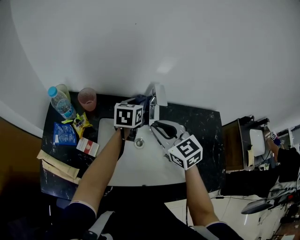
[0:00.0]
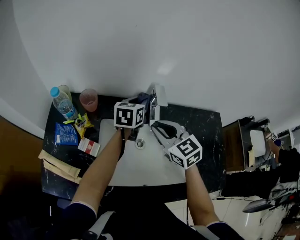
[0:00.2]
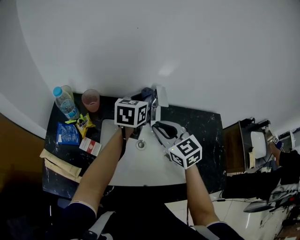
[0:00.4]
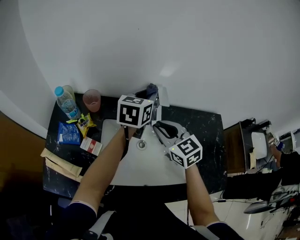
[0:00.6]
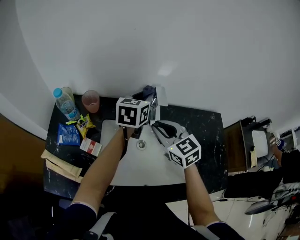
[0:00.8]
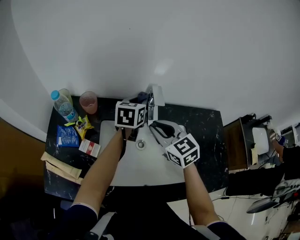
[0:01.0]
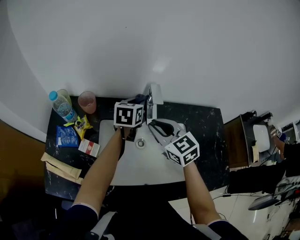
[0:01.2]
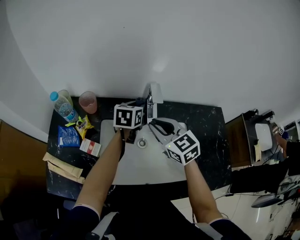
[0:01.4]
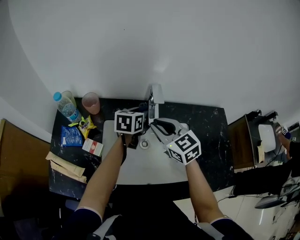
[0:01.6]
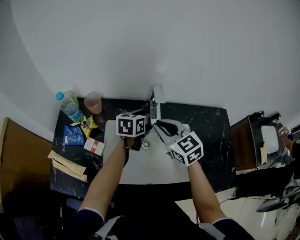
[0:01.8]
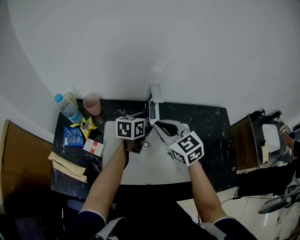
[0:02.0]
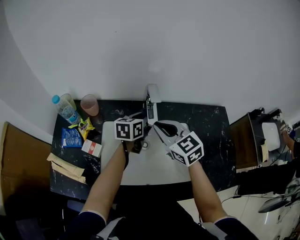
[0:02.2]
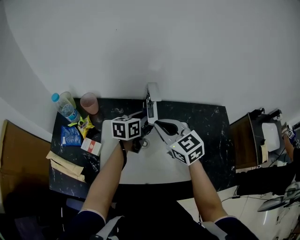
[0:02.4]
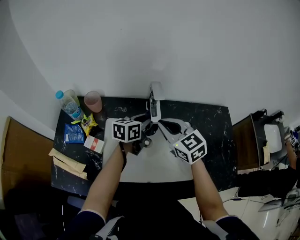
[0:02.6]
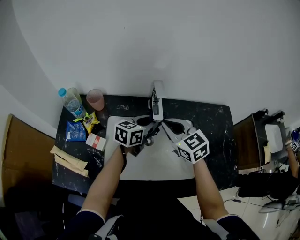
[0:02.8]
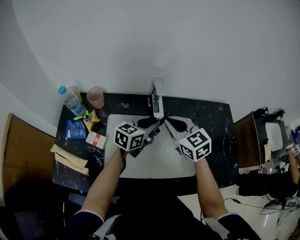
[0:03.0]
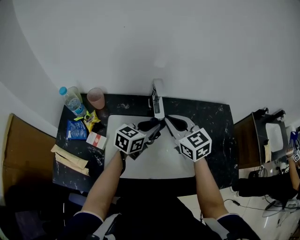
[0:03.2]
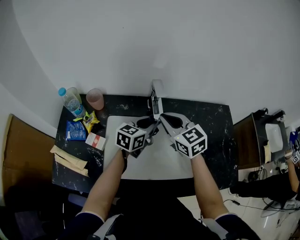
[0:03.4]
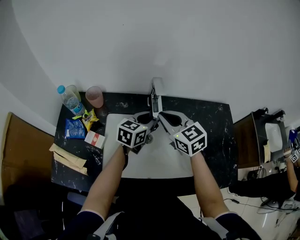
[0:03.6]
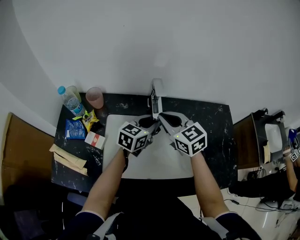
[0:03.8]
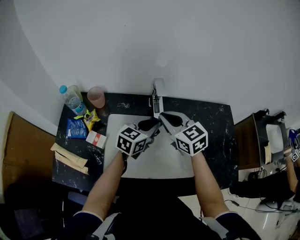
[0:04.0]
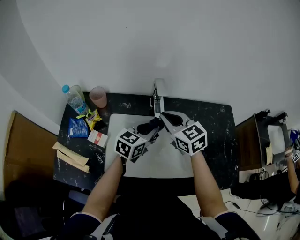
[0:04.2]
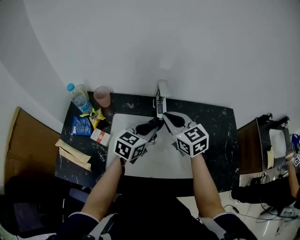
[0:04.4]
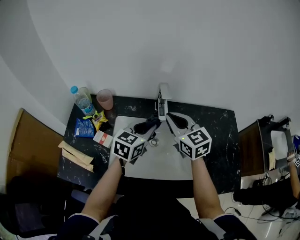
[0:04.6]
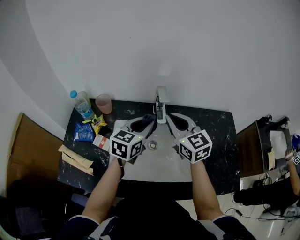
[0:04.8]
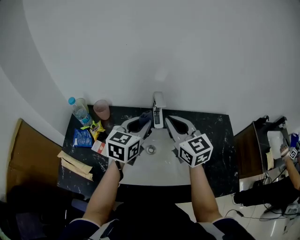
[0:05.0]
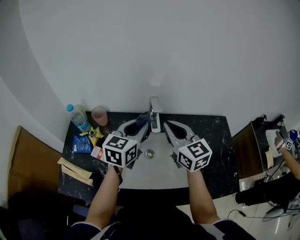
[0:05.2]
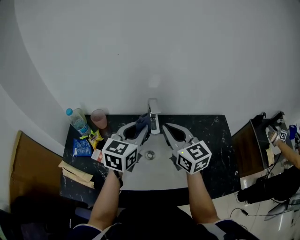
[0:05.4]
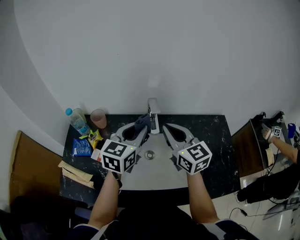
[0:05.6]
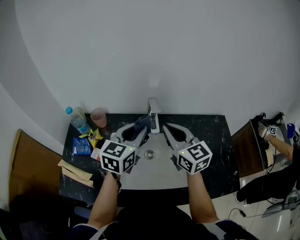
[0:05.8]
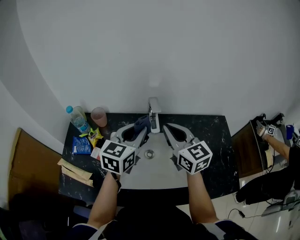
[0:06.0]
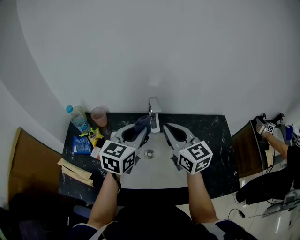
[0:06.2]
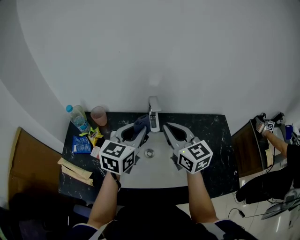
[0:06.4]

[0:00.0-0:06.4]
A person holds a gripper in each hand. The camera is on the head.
0:00.0 to 0:01.6: The left gripper travels upward and back again, about 10 cm each way.
0:01.6 to 0:03.2: The left gripper moves backward, about 10 cm, and turns by about 20 degrees.
0:03.2 to 0:04.8: The left gripper is displaced upward and to the left by approximately 10 cm; the right gripper travels upward by approximately 5 cm.
0:04.8 to 0:06.4: The left gripper travels upward by about 5 cm.

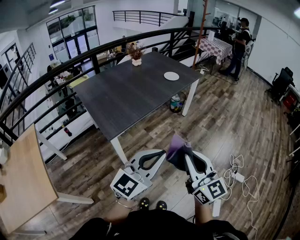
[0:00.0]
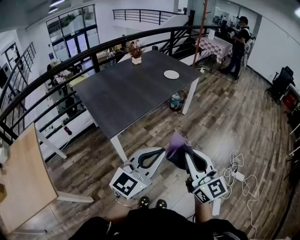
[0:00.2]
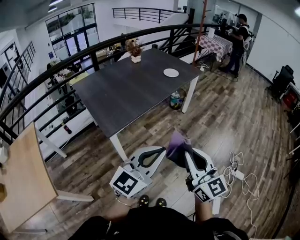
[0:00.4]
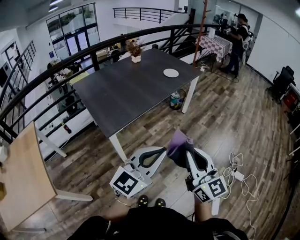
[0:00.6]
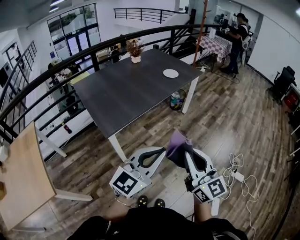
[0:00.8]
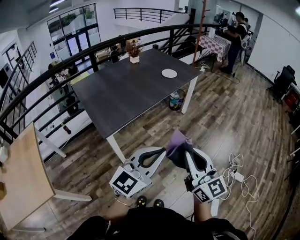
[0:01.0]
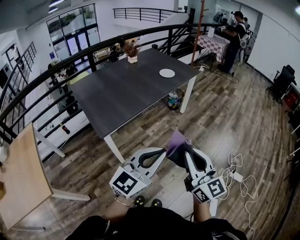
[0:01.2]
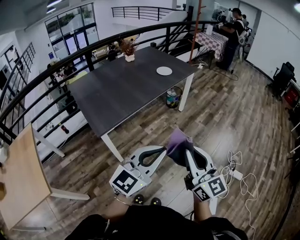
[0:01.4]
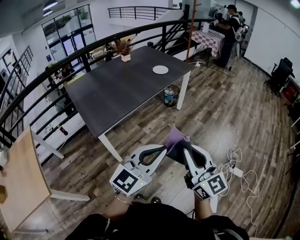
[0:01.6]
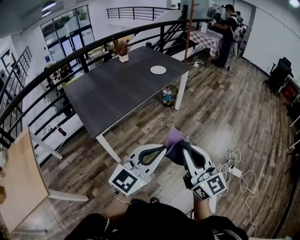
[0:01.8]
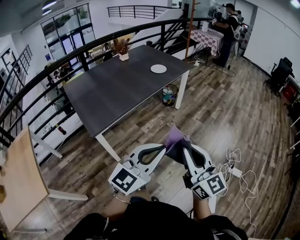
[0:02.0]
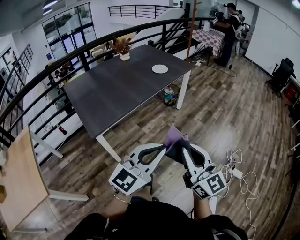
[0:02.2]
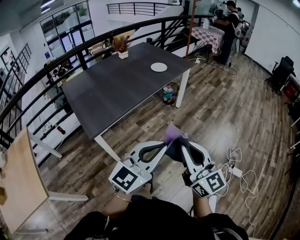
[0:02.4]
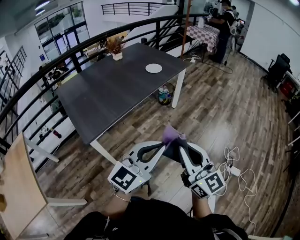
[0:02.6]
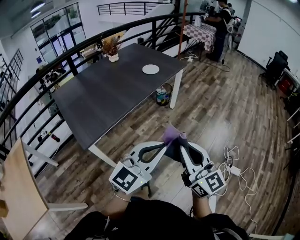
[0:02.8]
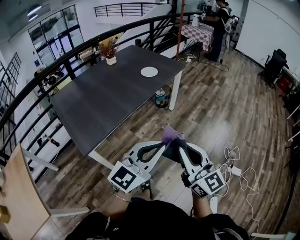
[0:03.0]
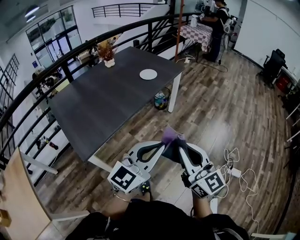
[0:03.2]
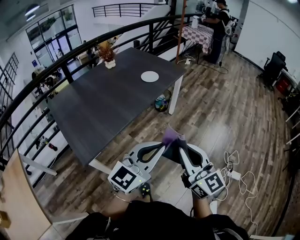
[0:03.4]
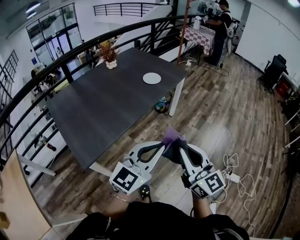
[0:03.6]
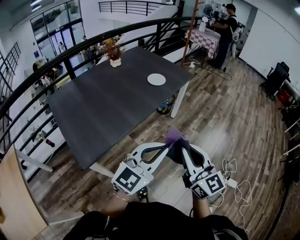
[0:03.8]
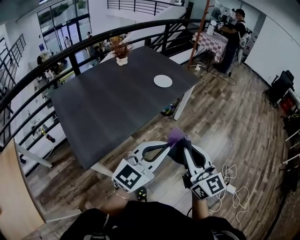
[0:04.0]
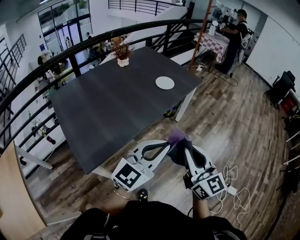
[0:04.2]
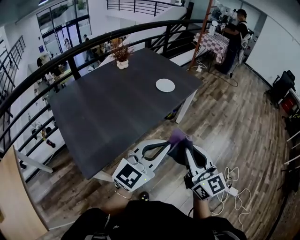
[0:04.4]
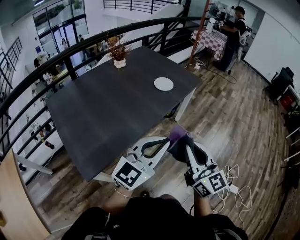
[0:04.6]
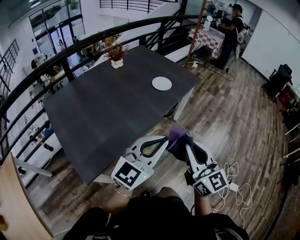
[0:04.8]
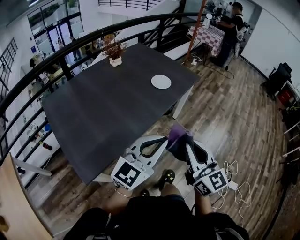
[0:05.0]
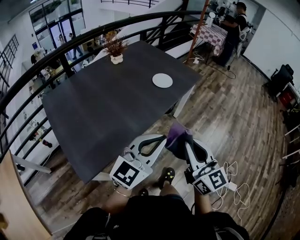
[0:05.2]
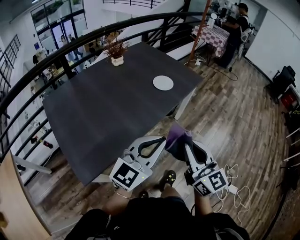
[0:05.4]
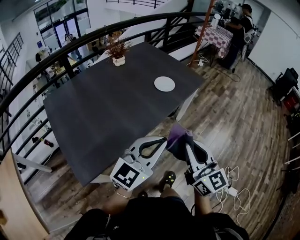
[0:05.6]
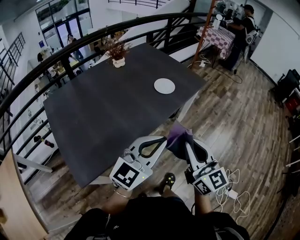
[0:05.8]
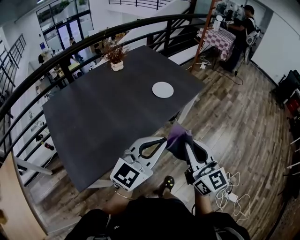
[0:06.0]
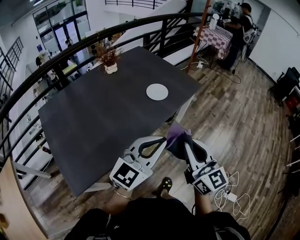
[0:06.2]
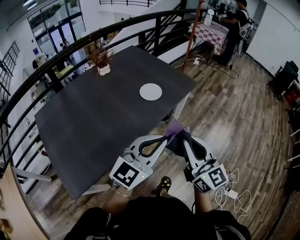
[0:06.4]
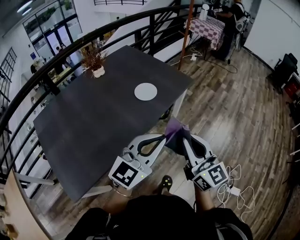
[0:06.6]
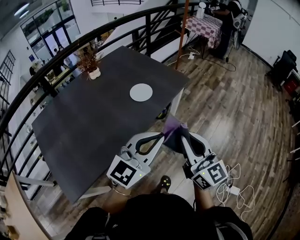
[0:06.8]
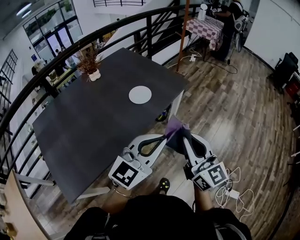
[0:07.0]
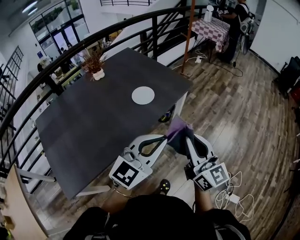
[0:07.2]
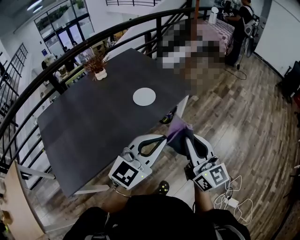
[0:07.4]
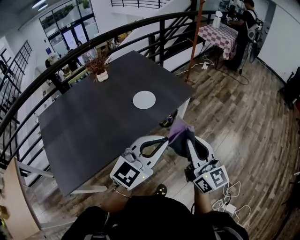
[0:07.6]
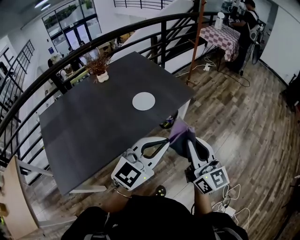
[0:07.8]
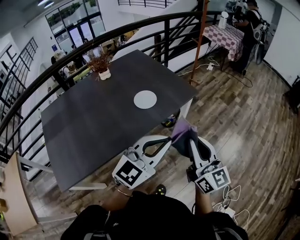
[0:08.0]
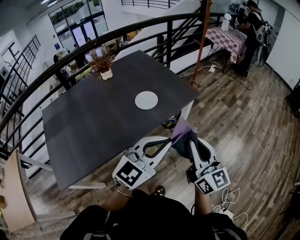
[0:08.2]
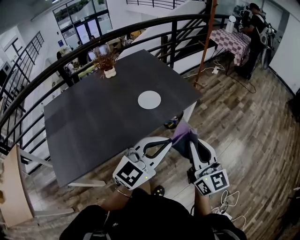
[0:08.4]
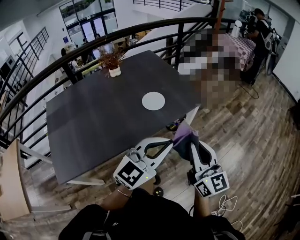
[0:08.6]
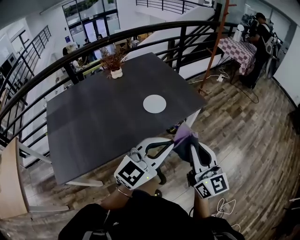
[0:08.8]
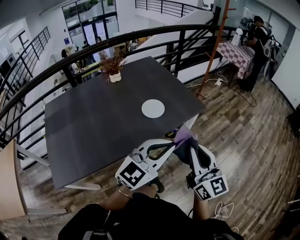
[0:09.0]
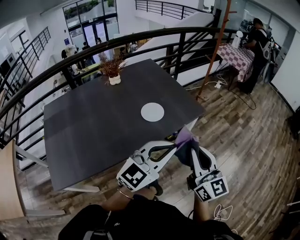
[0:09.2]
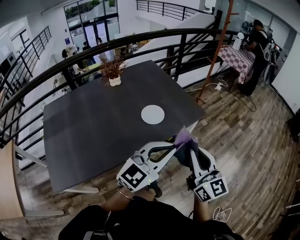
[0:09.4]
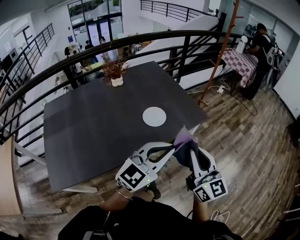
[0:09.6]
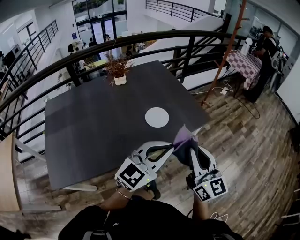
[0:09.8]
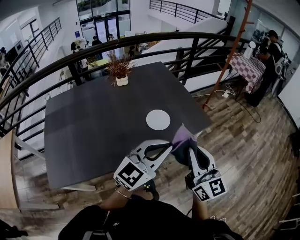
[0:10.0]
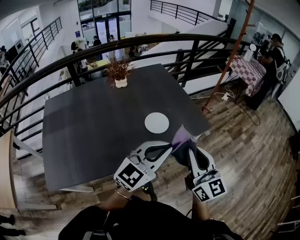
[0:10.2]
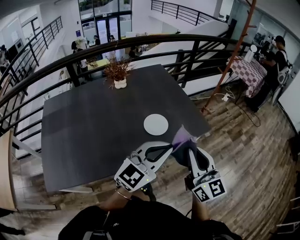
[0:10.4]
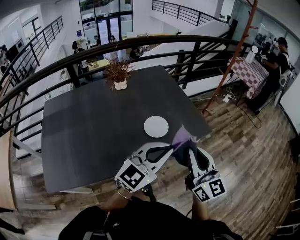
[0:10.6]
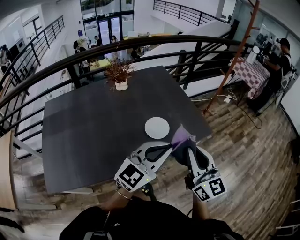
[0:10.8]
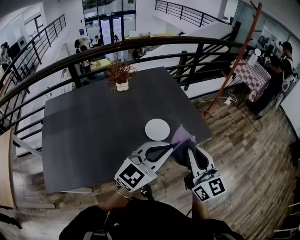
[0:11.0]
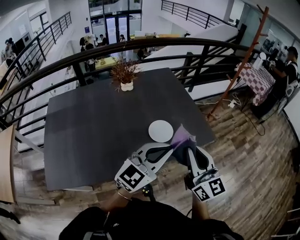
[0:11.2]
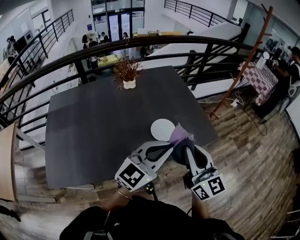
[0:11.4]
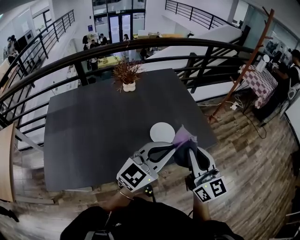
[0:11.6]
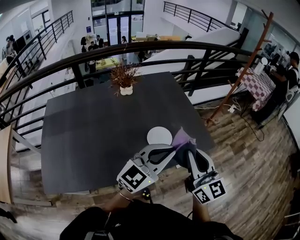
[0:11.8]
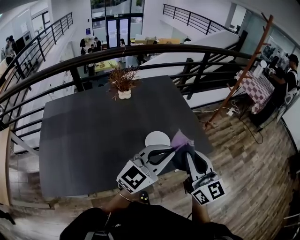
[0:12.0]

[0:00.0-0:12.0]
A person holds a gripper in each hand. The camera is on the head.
0:00.0 to 0:01.6: Both grippers move to the right, approximately 10 cm.
0:01.6 to 0:03.0: Both grippers travel together forward, approximately 15 cm.
0:03.0 to 0:04.4: Both grippers travel together forward and to the left, about 20 cm.
0:04.4 to 0:06.0: The two grippers go about 15 cm forward.
0:06.0 to 0:07.6: Both grippers move to the right and forward, some 20 cm.
0:07.6 to 0:09.0: There are only small adjustments of the grippers.
0:09.0 to 0:10.4: Both grippers travel together forward, some 10 cm.
0:10.4 to 0:12.0: The grippers both shift forward by approximately 10 cm.

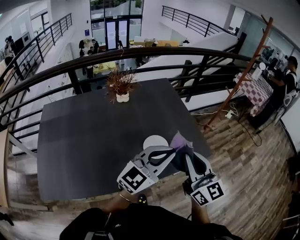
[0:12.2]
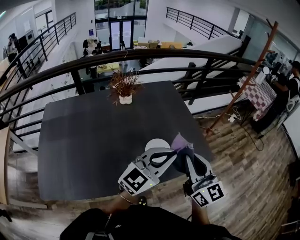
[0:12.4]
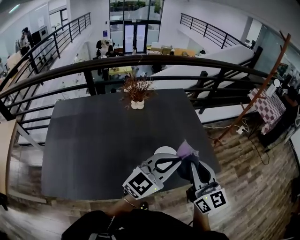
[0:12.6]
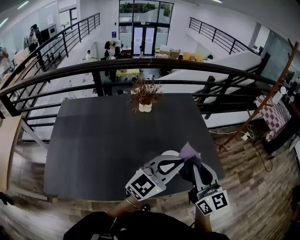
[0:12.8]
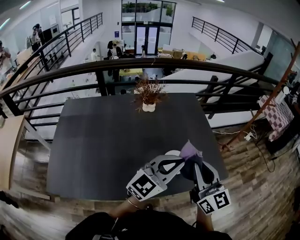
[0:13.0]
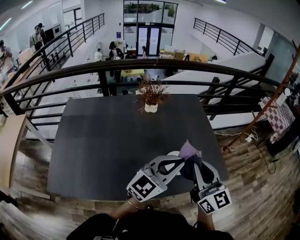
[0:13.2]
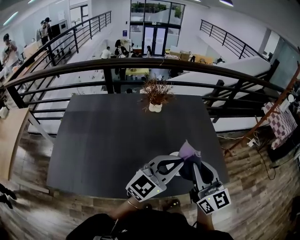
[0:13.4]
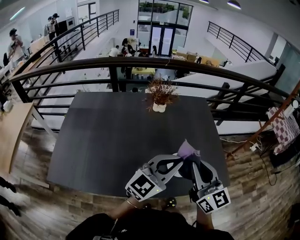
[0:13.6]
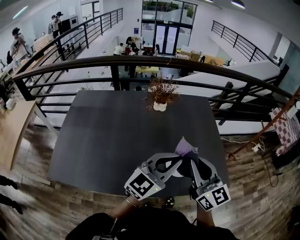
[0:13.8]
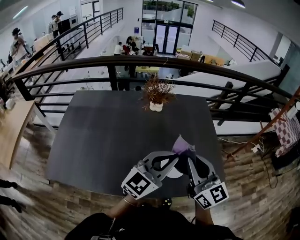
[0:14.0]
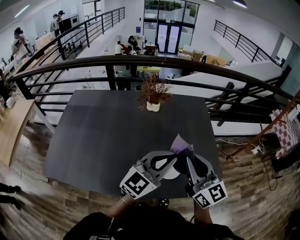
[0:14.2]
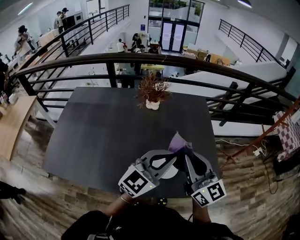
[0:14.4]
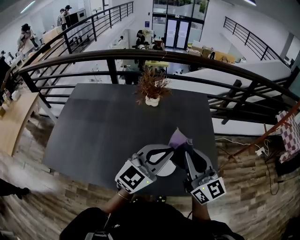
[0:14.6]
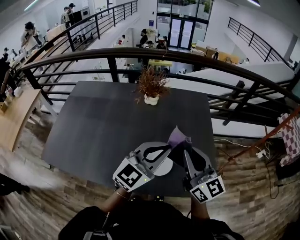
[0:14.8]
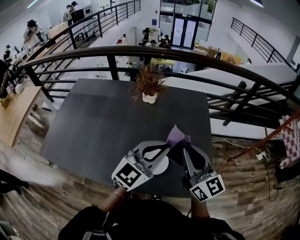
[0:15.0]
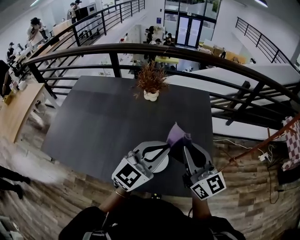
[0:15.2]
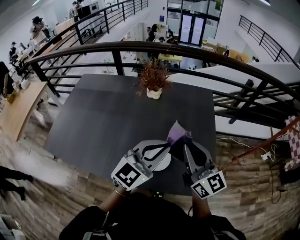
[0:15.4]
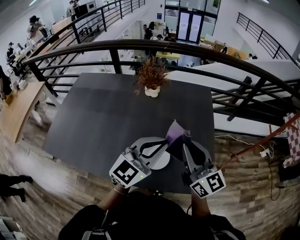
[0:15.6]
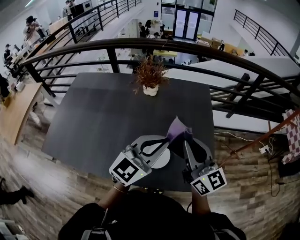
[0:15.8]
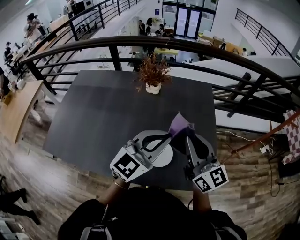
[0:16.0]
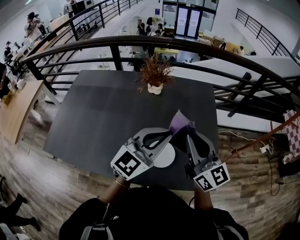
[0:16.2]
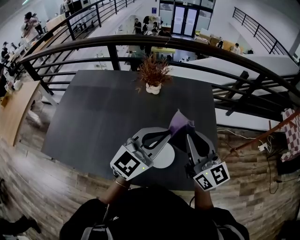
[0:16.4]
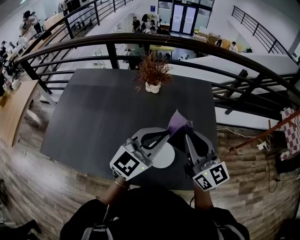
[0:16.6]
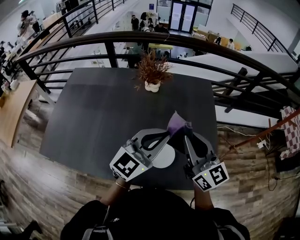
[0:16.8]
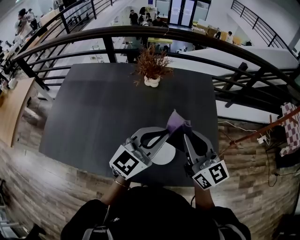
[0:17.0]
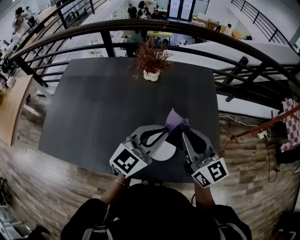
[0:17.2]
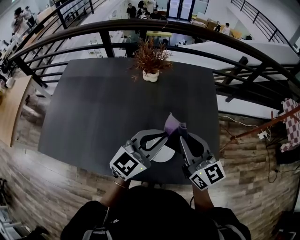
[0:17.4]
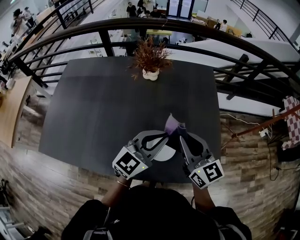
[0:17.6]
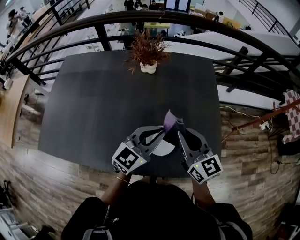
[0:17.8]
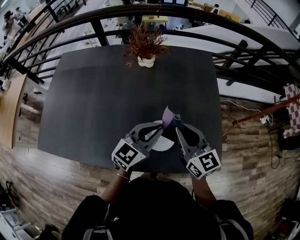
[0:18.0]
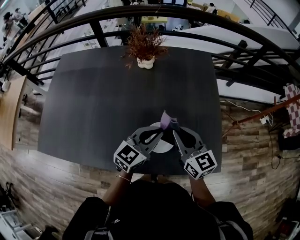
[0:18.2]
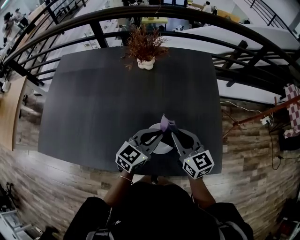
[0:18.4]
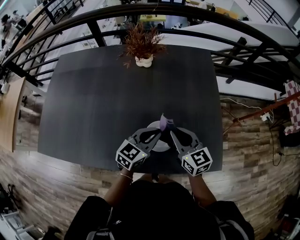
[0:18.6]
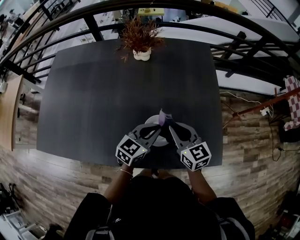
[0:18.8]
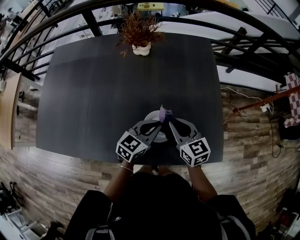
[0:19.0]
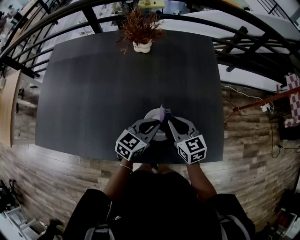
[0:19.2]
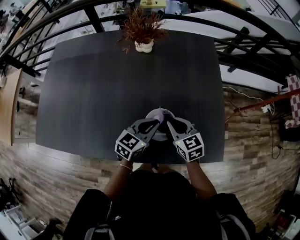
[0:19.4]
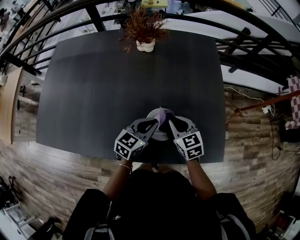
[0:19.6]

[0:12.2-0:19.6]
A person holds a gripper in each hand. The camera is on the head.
0:12.2 to 0:13.6: The right gripper shifts some 10 cm to the left and forward, while the left gripper shifts roughly 10 cm to the left.
0:13.6 to 0:15.2: Both grippers travel together to the right and forward, roughly 15 cm.
0:15.2 to 0:16.6: The right gripper ends up about 5 cm from where it was. The left gripper goes some 5 cm to the left.
0:16.6 to 0:18.2: The two grippers go approximately 15 cm downward. The left gripper turns by approximately 20 degrees.
0:18.2 to 0:19.6: Both grippers travel together downward, about 10 cm. The right gripper swivels roughly 20 degrees.
